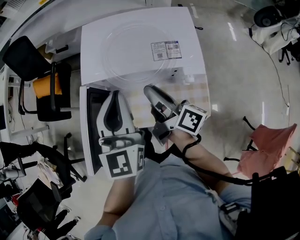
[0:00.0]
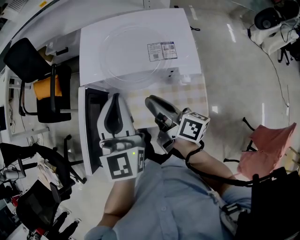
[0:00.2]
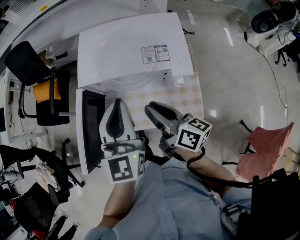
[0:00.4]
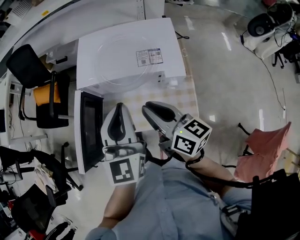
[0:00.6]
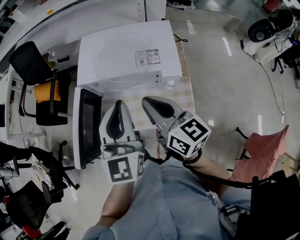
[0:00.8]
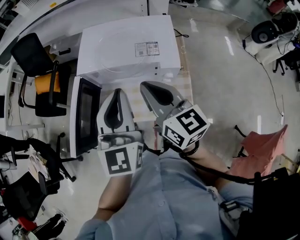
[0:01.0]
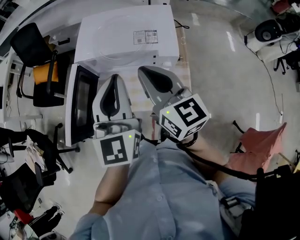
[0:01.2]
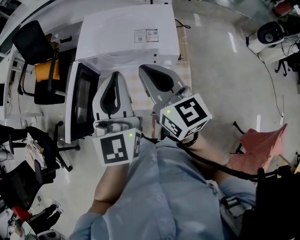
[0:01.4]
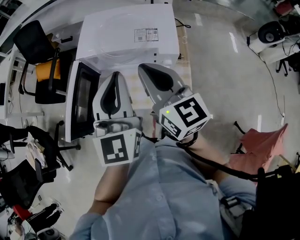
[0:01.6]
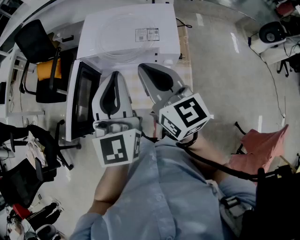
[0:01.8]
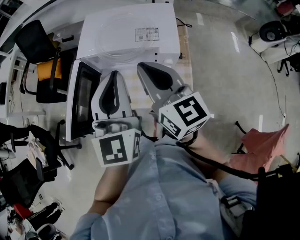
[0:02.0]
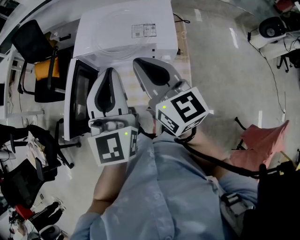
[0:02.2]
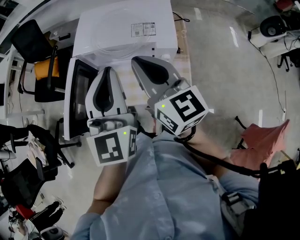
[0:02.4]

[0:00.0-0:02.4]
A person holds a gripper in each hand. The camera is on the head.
0:00.0 to 0:01.2: The right gripper moves upward and backward, approximately 15 cm, rolls counterclockwise, seen from behind, by some 50 degrees, and closes its fingers. The left gripper travels backward and upward by about 10 cm.
0:01.2 to 0:02.4: The grippers stay close to where they were, moving slightly.

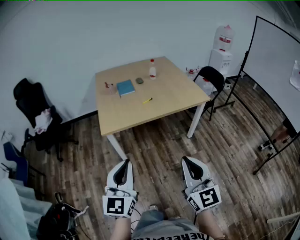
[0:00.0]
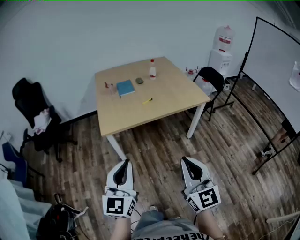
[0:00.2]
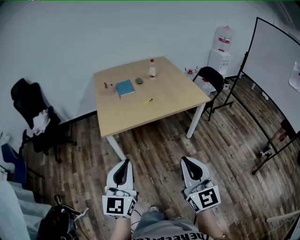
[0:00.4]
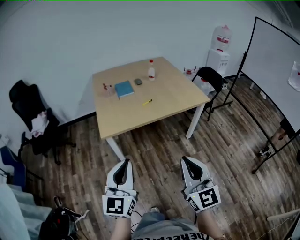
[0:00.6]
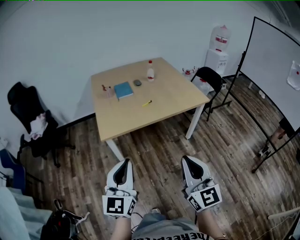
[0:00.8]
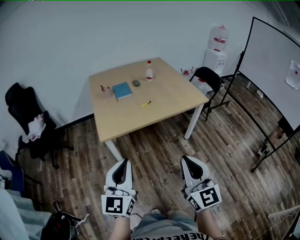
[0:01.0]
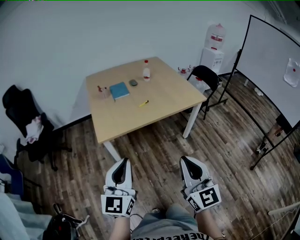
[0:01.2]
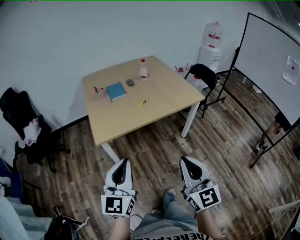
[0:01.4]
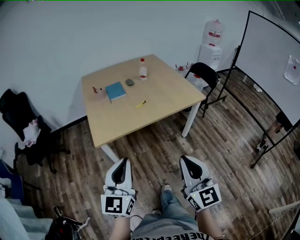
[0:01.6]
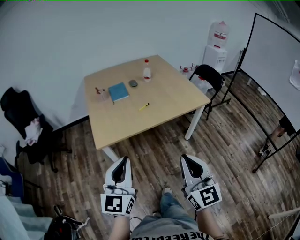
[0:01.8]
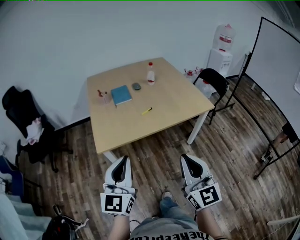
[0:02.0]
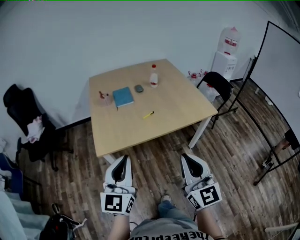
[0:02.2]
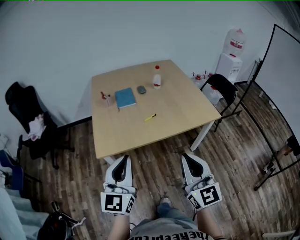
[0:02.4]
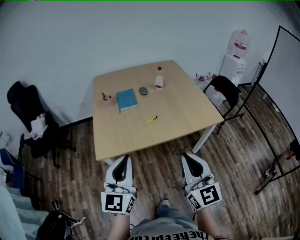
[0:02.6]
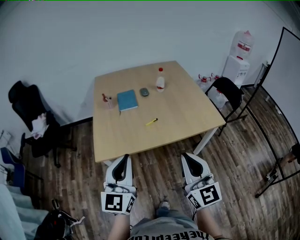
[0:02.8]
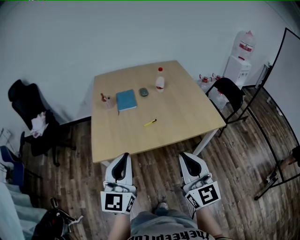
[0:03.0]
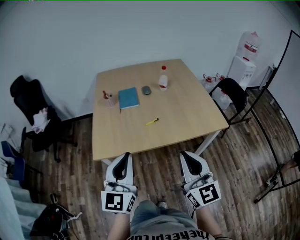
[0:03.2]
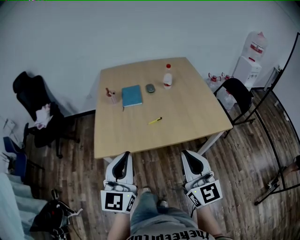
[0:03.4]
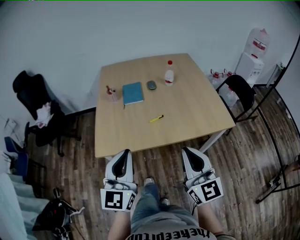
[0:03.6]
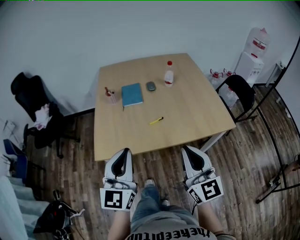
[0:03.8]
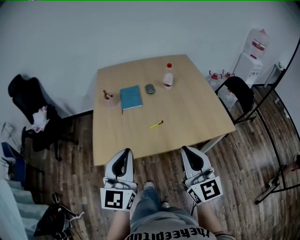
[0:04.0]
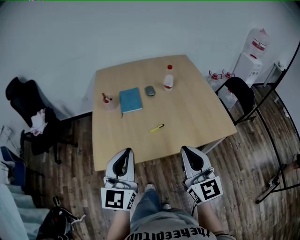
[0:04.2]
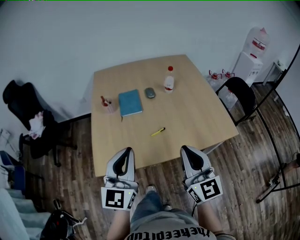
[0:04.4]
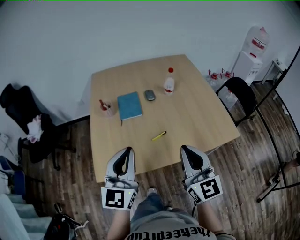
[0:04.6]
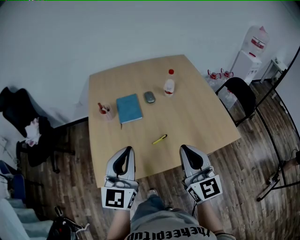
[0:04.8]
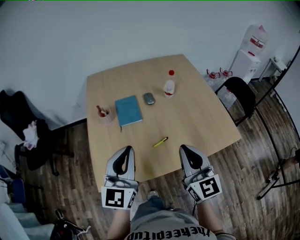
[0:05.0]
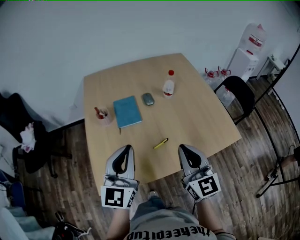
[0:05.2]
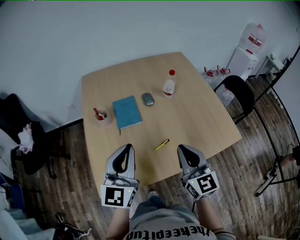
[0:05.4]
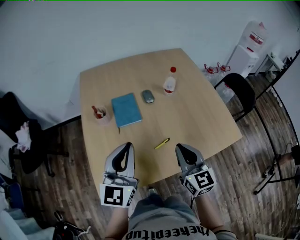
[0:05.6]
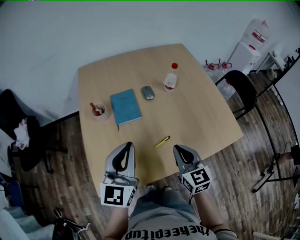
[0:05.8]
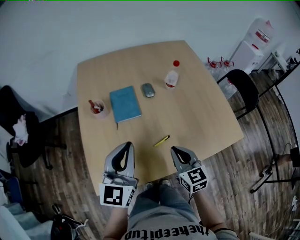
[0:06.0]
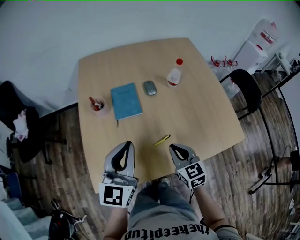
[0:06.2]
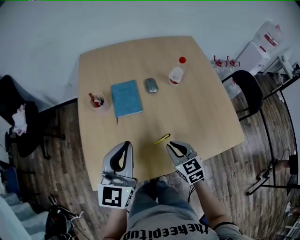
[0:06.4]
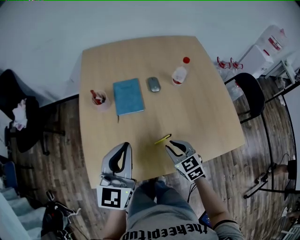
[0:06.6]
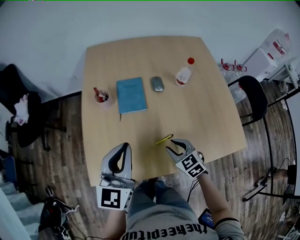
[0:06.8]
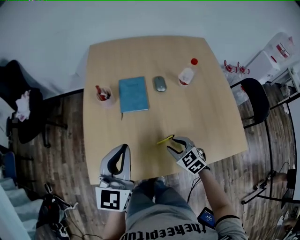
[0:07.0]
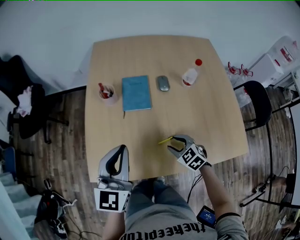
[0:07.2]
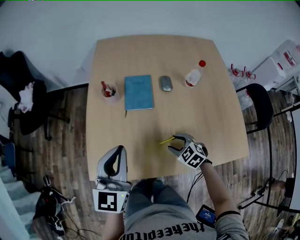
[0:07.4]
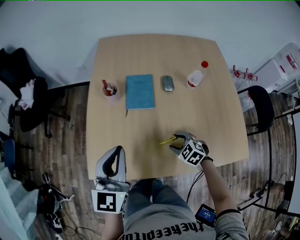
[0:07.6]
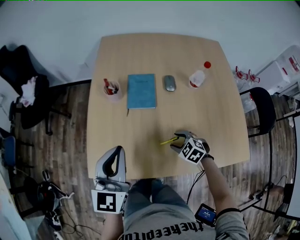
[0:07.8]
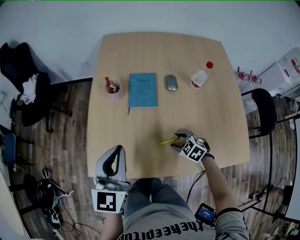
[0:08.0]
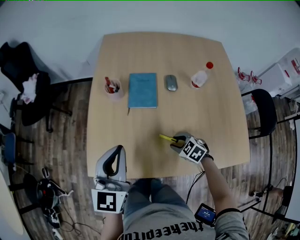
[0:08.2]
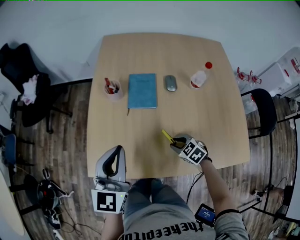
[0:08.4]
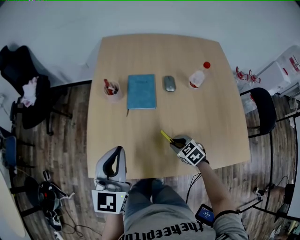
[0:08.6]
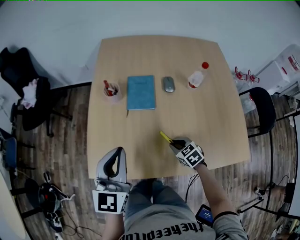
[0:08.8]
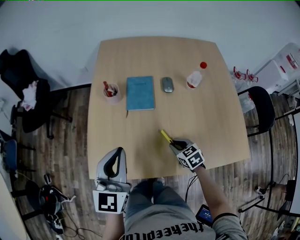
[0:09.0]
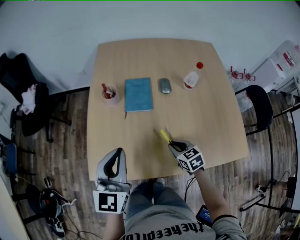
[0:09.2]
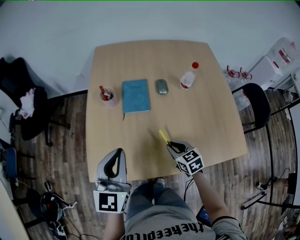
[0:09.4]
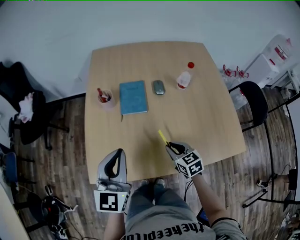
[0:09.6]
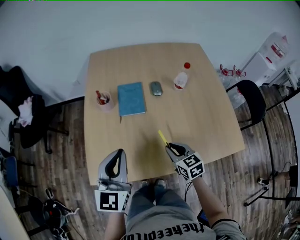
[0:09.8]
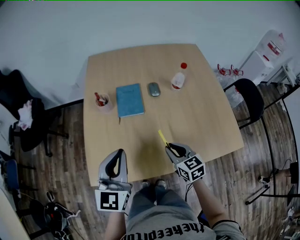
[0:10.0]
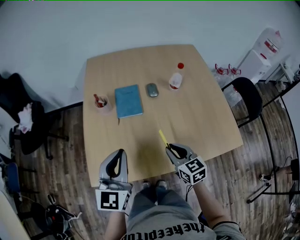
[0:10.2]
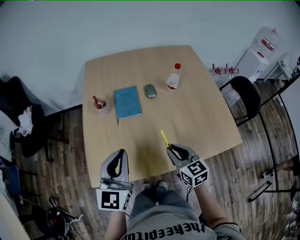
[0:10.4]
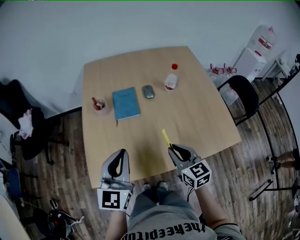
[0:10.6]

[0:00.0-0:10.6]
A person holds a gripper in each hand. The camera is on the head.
0:00.0 to 0:01.6: The two grippers go some 10 cm forward.
0:01.6 to 0:03.0: Both grippers move forward, some 20 cm.
0:03.0 to 0:04.6: The grippers both shift forward by roughly 15 cm.
0:04.6 to 0:06.0: The right gripper travels downward and forward by about 20 cm, and changes its angle by approximately 30 degrees. The left gripper shifts approximately 10 cm forward.
0:06.0 to 0:07.6: The left gripper shifts by about 5 cm; the right gripper heads downward, covering roughly 15 cm, tips its fingers downward by about 40 degrees, and opens up.
0:07.6 to 0:09.0: The right gripper turns by roughly 30 degrees, and closes.
0:09.0 to 0:10.6: The right gripper travels upward and backward by roughly 20 cm, and changes its angle by roughly 30 degrees.

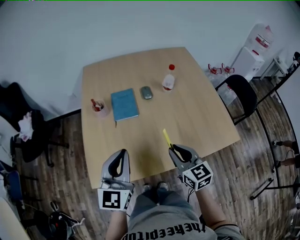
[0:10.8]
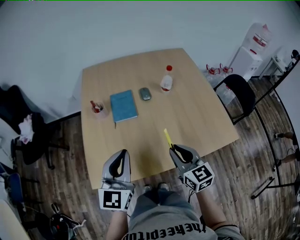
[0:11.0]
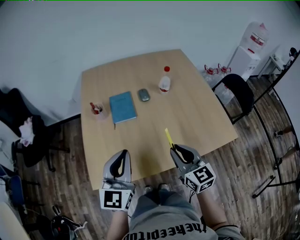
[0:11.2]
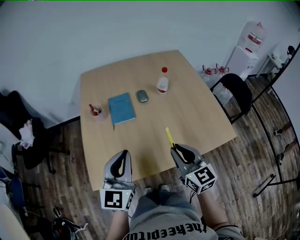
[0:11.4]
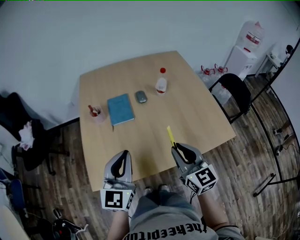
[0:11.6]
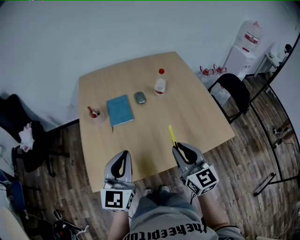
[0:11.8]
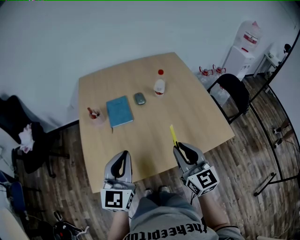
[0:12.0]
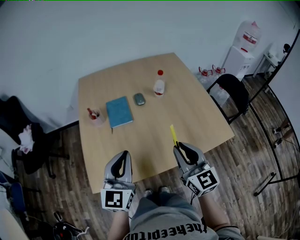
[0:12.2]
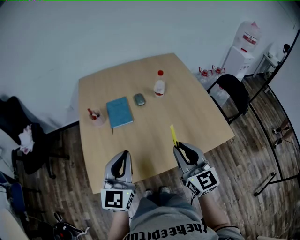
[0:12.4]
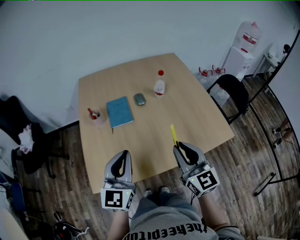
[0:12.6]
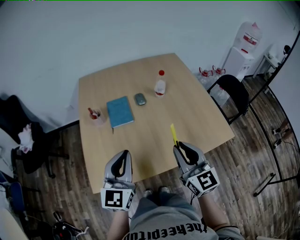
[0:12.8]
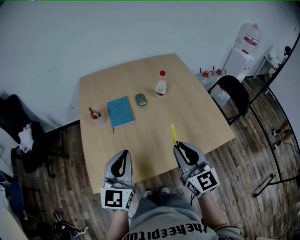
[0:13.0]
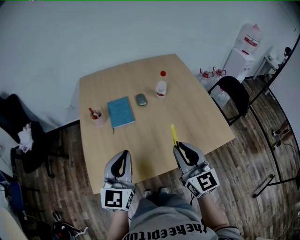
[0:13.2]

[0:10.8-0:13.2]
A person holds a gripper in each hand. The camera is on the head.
0:10.8 to 0:12.0: The right gripper goes some 10 cm upward.
0:12.0 to 0:13.2: The grippers move only a little.

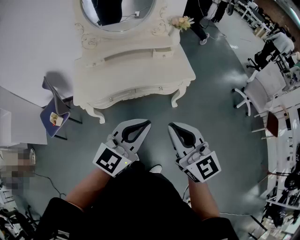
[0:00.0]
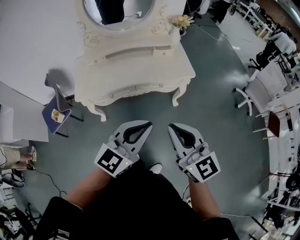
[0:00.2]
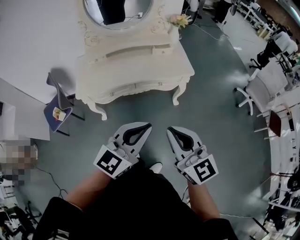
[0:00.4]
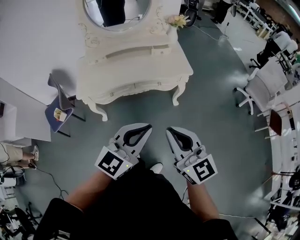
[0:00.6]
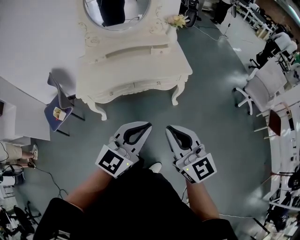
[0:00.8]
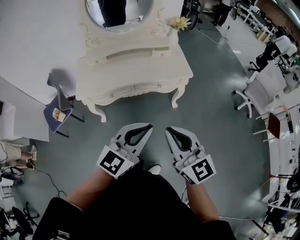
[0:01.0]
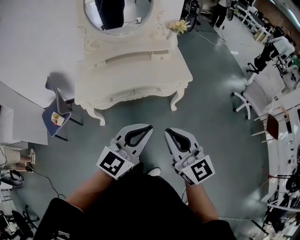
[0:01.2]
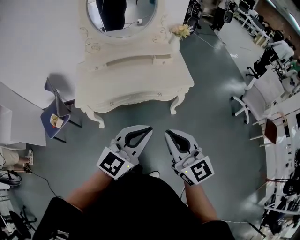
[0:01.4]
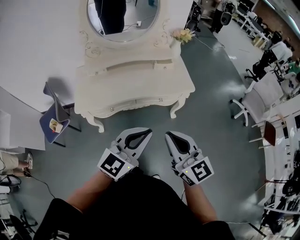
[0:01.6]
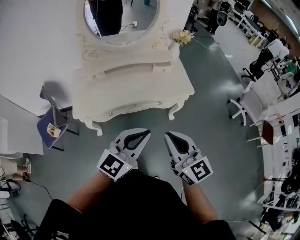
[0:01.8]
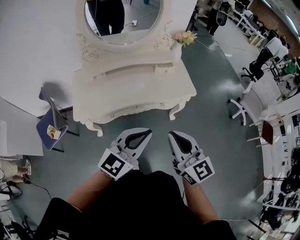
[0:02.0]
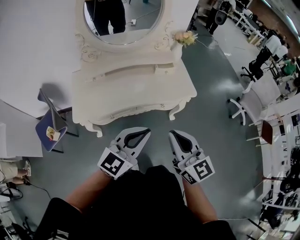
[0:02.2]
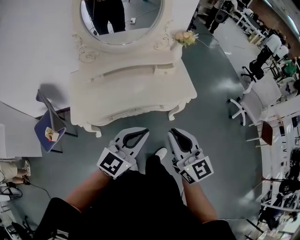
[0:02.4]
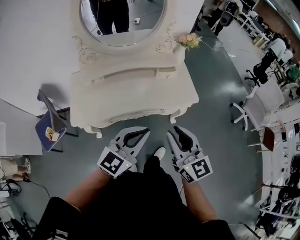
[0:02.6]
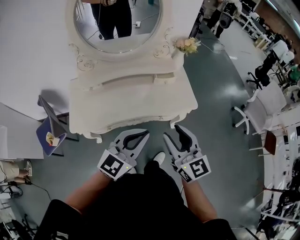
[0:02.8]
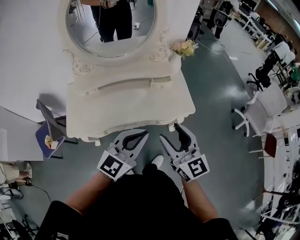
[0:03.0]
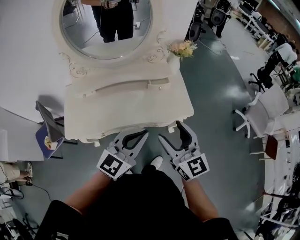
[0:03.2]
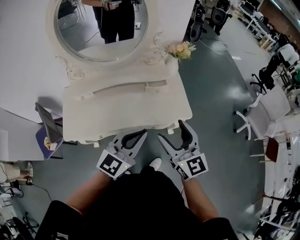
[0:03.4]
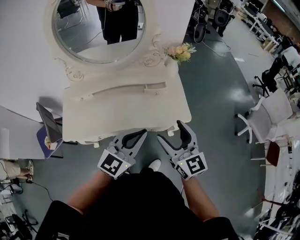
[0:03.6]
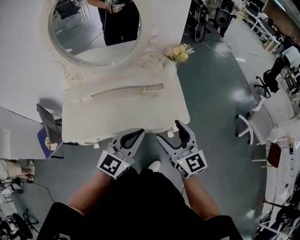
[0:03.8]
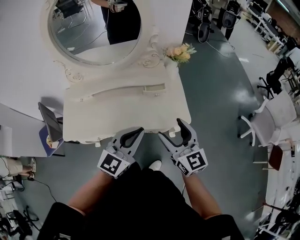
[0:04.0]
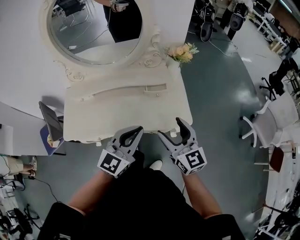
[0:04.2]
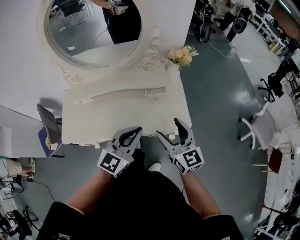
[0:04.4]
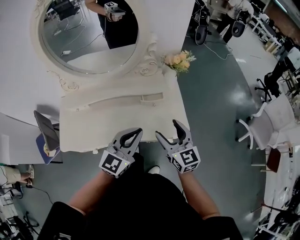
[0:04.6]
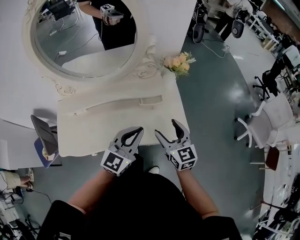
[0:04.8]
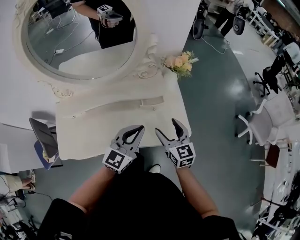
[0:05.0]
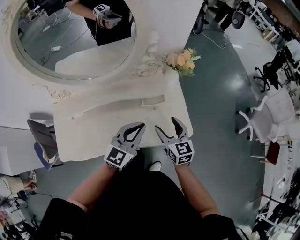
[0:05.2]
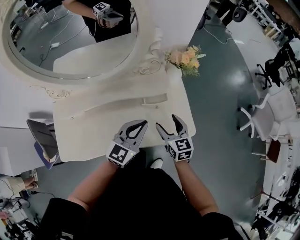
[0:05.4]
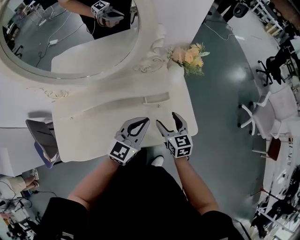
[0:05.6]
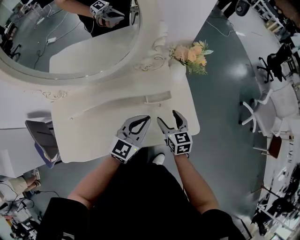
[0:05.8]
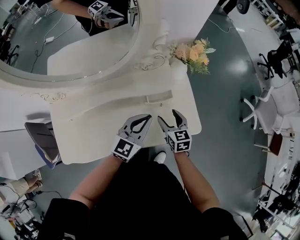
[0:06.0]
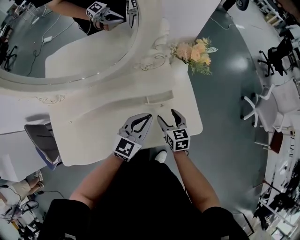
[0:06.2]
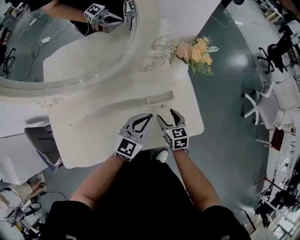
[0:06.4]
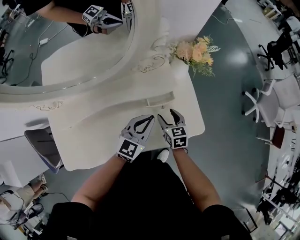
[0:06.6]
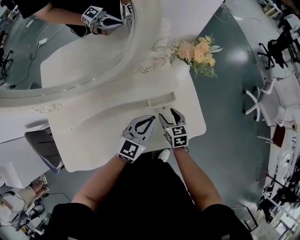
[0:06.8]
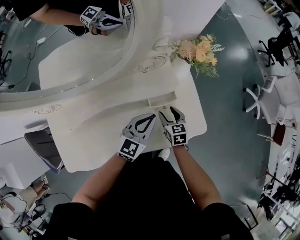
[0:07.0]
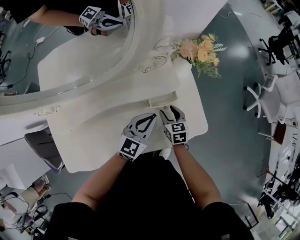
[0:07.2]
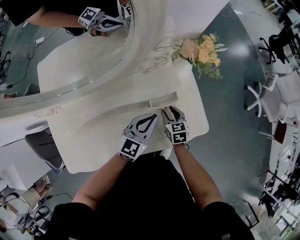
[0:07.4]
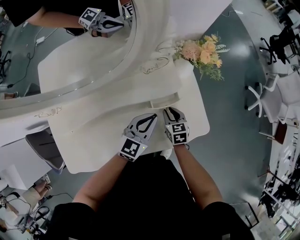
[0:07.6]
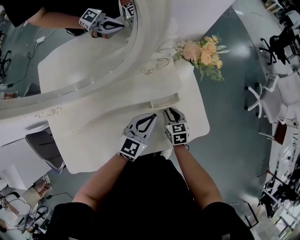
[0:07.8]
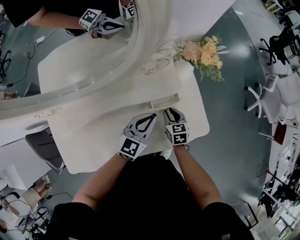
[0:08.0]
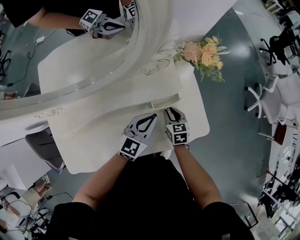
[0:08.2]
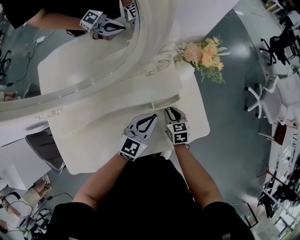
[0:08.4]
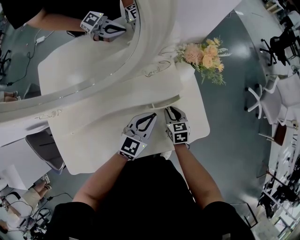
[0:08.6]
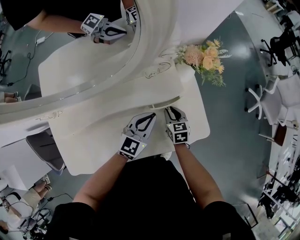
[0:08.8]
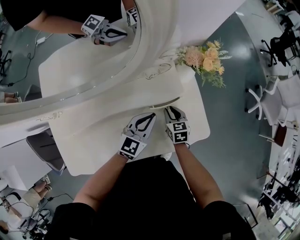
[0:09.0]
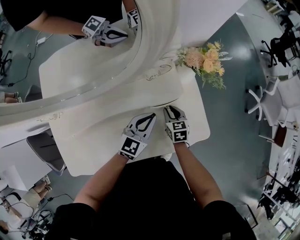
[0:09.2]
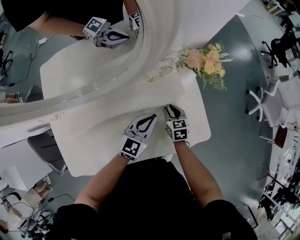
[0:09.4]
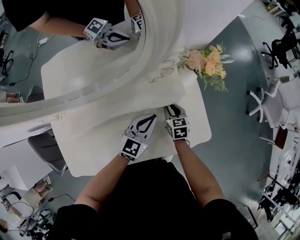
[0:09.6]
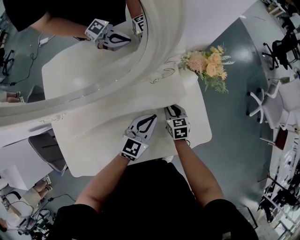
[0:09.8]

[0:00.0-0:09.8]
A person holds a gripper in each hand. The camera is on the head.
0:00.0 to 0:01.4: The right gripper reaches about 10 cm backward, then returns. Meanwhile the left gripper reaches some 10 cm backward, then returns.
0:01.4 to 0:02.8: The two grippers go some 20 cm forward. The right gripper opens its fingers.
0:02.8 to 0:04.2: The two grippers go some 20 cm forward and to the right. The right gripper opens.
0:04.2 to 0:05.6: Both grippers move forward and downward, about 25 cm. The right gripper turns by approximately 30 degrees.
0:05.6 to 0:07.0: The grippers both shift downward and forward by about 15 cm.
0:07.0 to 0:08.4: The right gripper closes its fingers.
0:08.4 to 0:09.8: The right gripper heads forward, covering some 5 cm.
